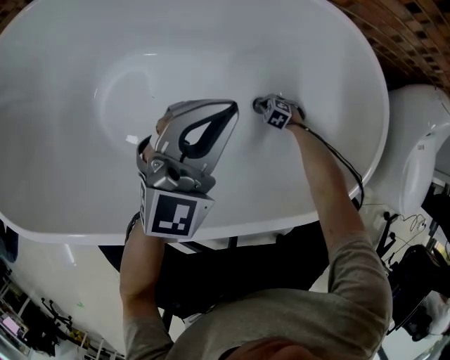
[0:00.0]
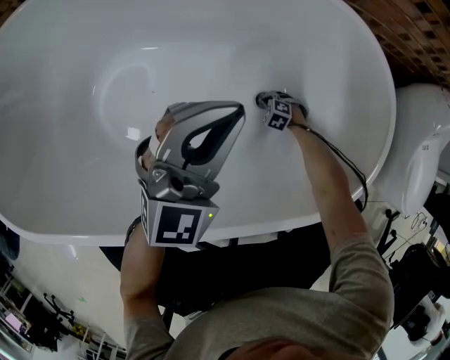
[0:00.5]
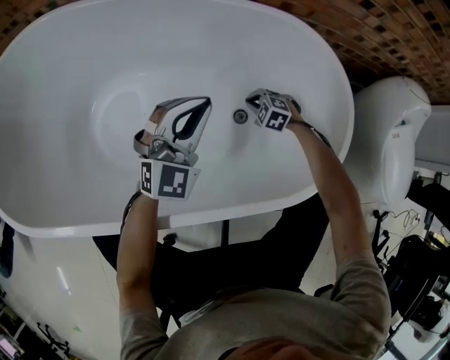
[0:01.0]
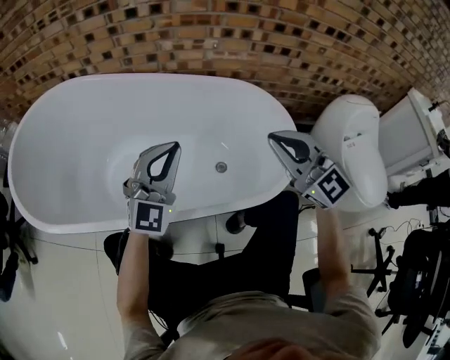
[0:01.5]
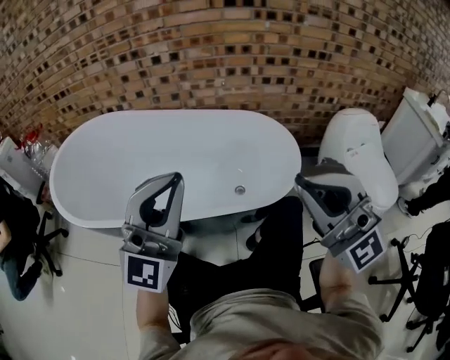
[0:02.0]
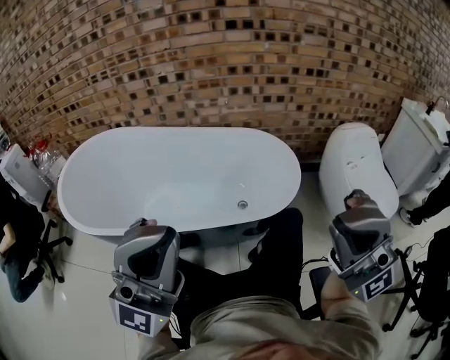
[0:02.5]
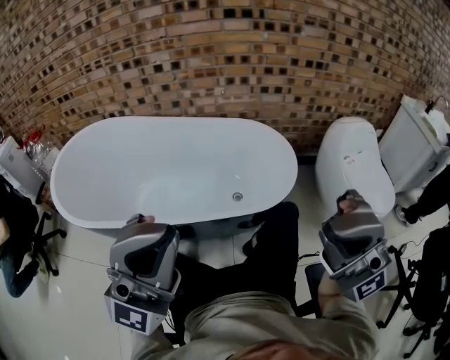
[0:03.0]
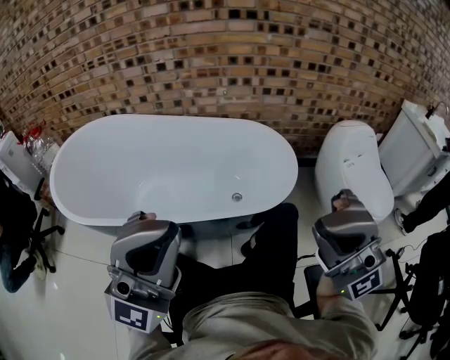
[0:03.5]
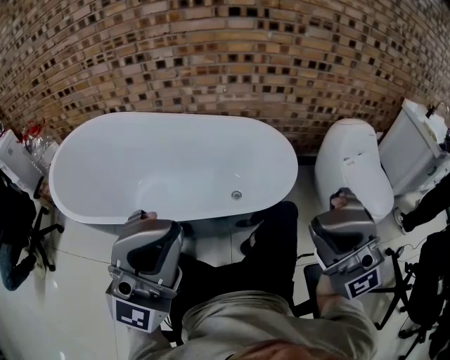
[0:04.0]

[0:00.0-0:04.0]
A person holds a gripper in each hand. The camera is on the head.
0:00.0 to 0:02.0: The left gripper shifts roughly 30 cm upward, and points its fingers roughly 30 degrees further upward, while the right gripper is displaced upward by approximately 90 cm, and angles its fingers upward, by roughly 100 degrees.
0:02.0 to 0:04.0: The left gripper goes some 10 cm backward and upward, while the right gripper travels backward by some 10 cm.

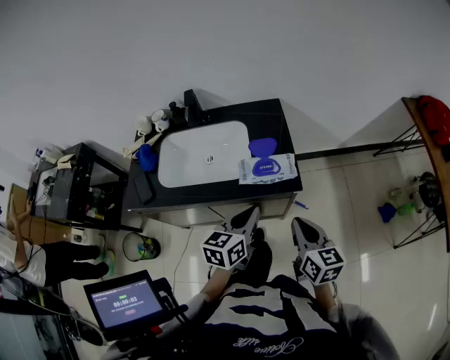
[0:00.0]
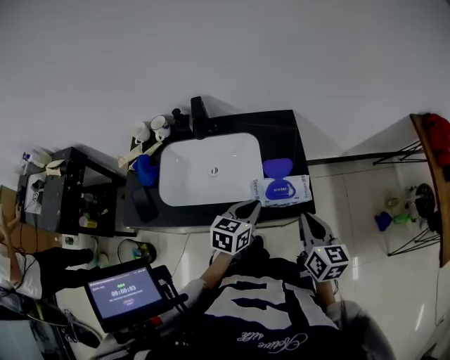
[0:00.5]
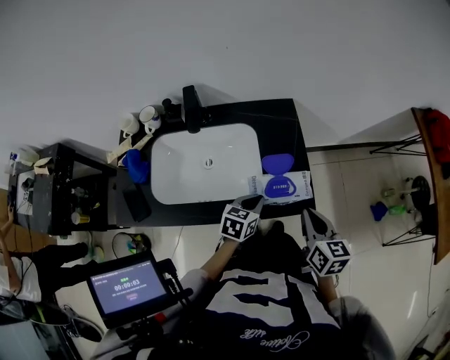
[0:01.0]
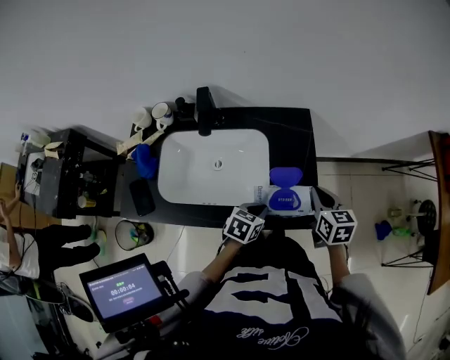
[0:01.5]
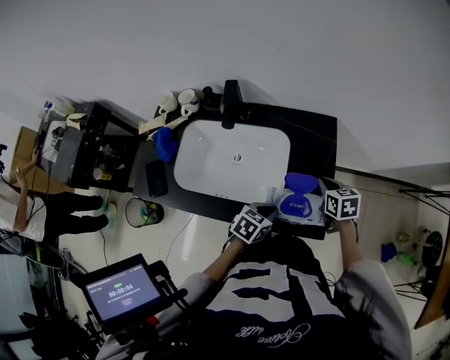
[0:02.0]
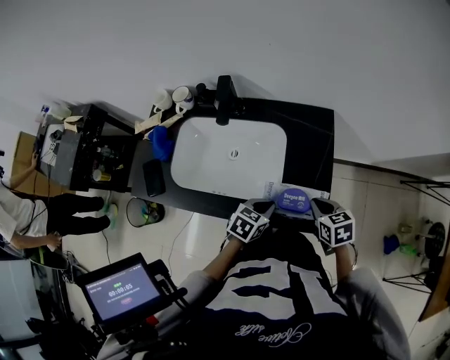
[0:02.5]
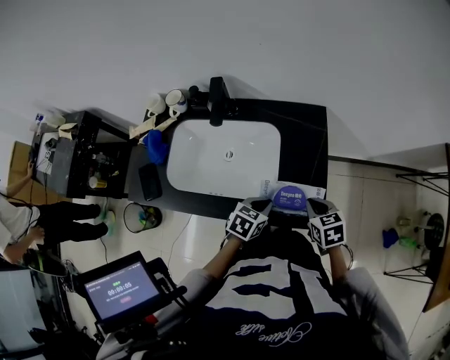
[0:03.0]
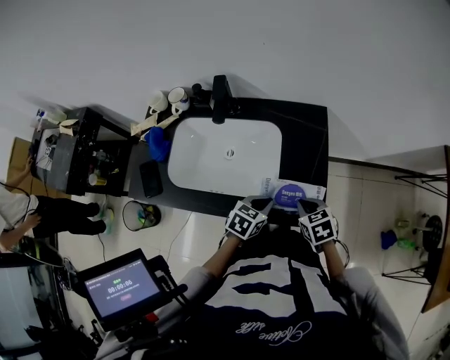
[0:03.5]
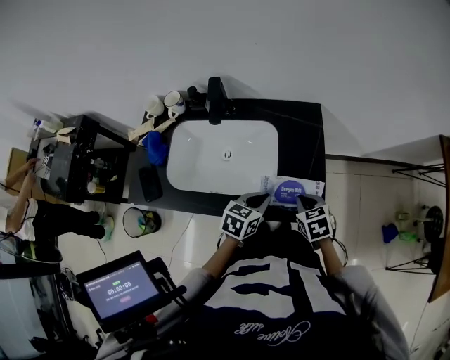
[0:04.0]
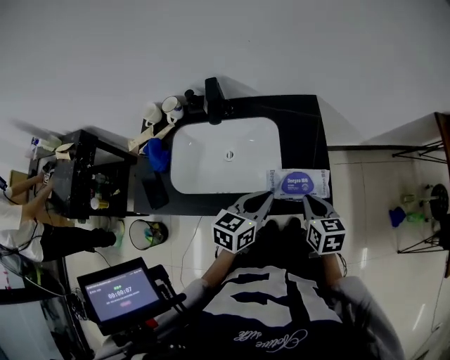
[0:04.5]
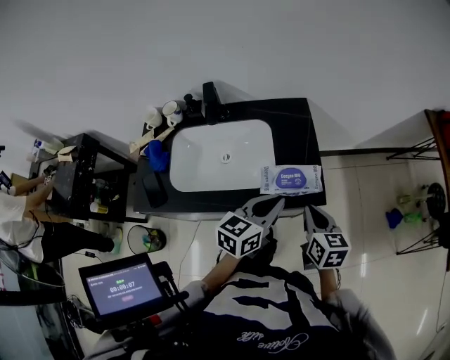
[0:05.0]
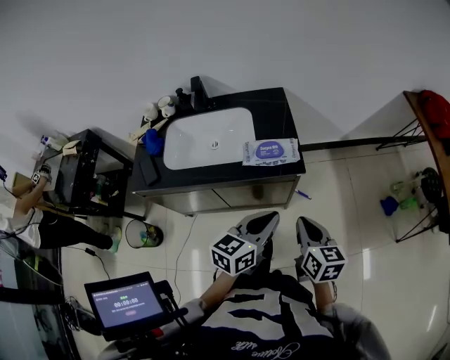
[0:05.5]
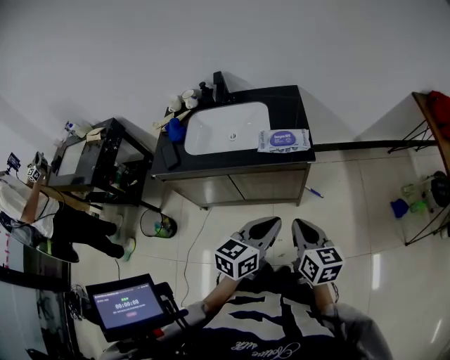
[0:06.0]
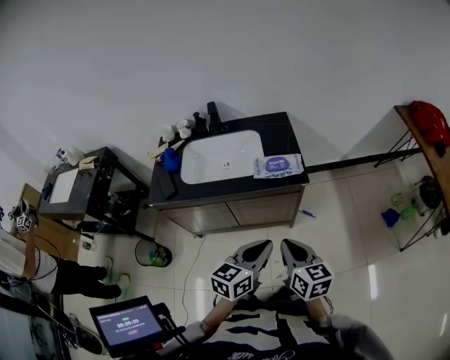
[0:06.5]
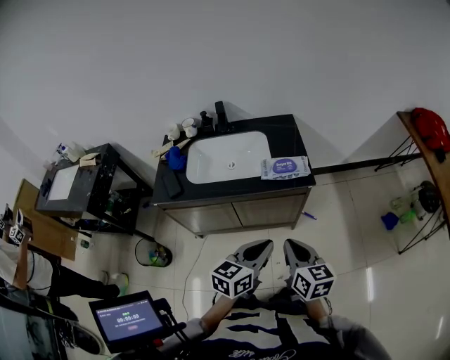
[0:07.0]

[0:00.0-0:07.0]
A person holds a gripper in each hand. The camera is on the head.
0:00.0 to 0:02.0: The left gripper heads downward and forward, covering roughly 20 cm, and turns by about 30 degrees. Meanwhile the right gripper shifts some 35 cm forward and downward, and turns by approximately 30 degrees.
0:02.0 to 0:03.5: The right gripper shifts roughly 10 cm backward.
0:03.5 to 0:05.0: The left gripper shifts roughly 15 cm upward, and changes its angle by about 30 degrees; the right gripper is displaced upward and backward by approximately 10 cm, and changes its angle by approximately 40 degrees.
0:05.0 to 0:07.0: Both grippers move backward, about 25 cm.

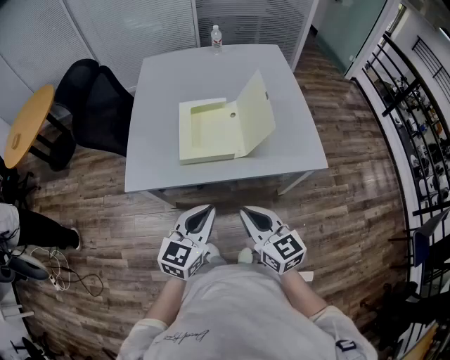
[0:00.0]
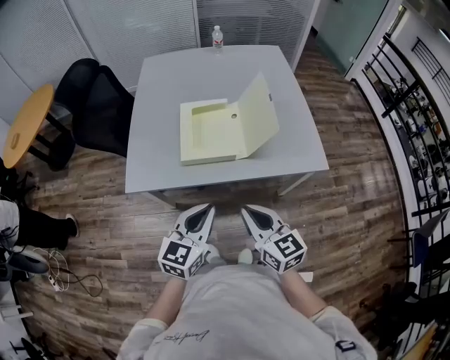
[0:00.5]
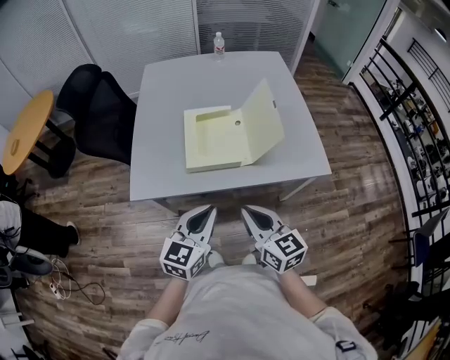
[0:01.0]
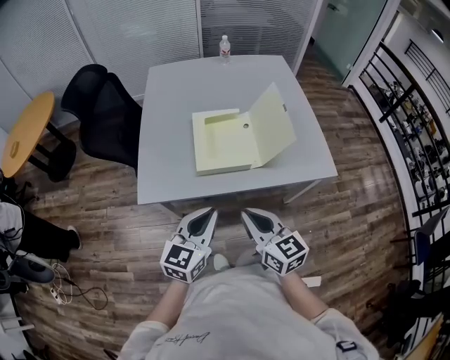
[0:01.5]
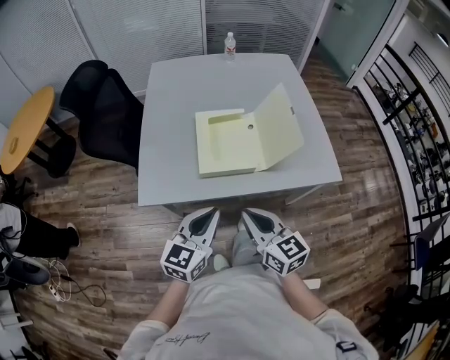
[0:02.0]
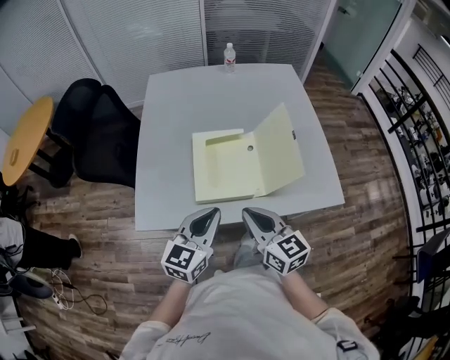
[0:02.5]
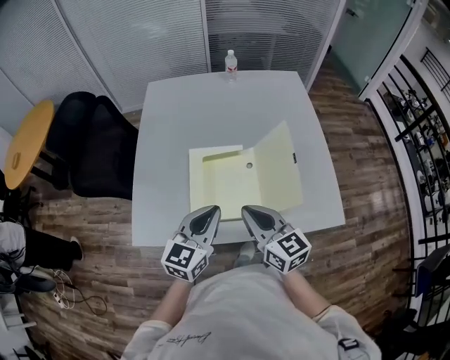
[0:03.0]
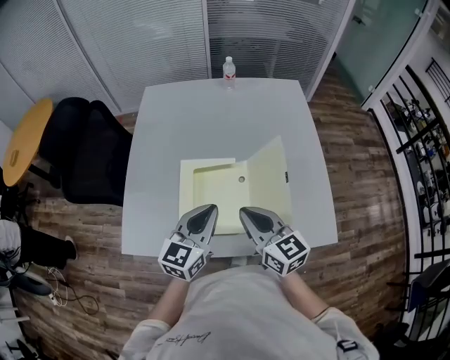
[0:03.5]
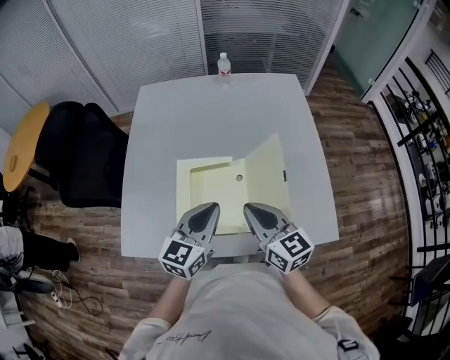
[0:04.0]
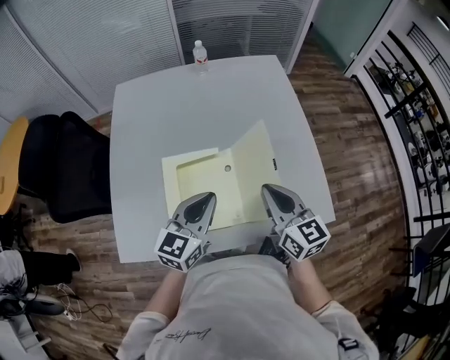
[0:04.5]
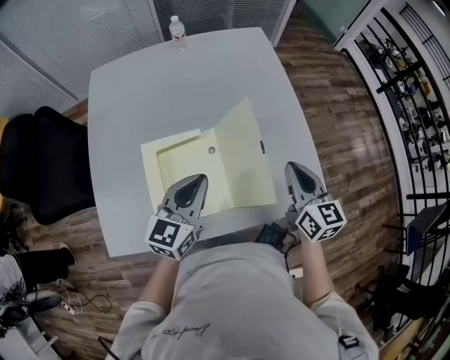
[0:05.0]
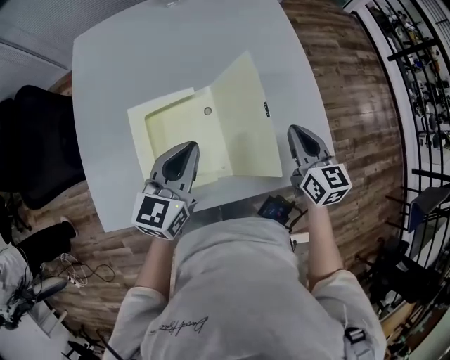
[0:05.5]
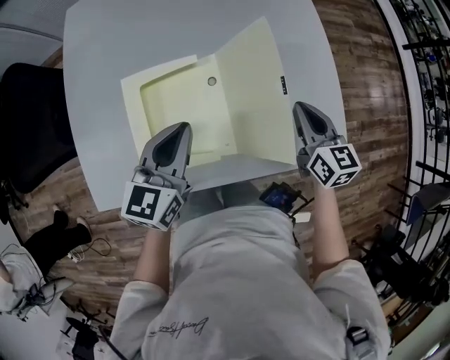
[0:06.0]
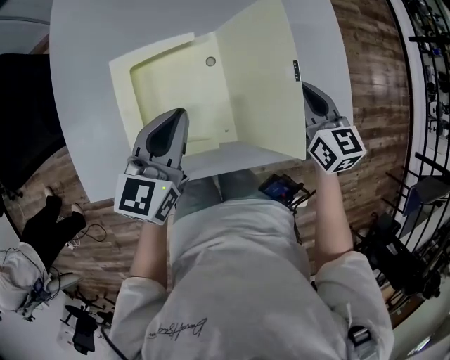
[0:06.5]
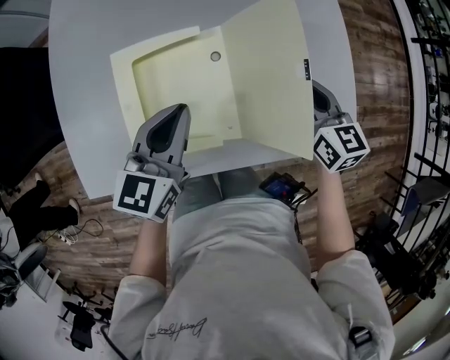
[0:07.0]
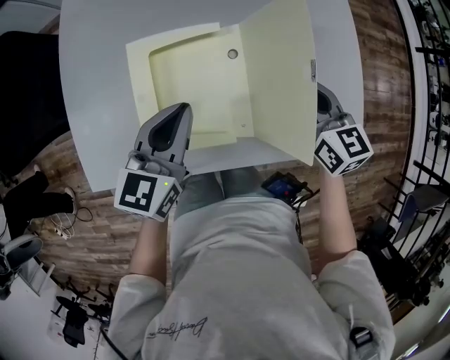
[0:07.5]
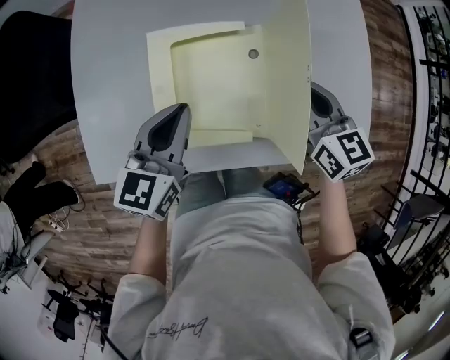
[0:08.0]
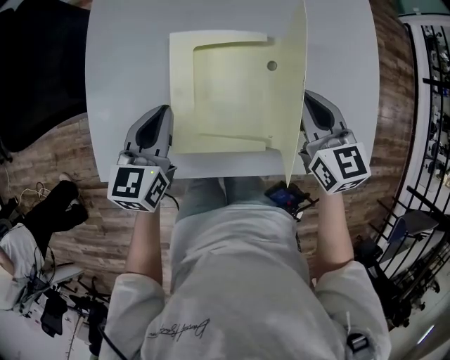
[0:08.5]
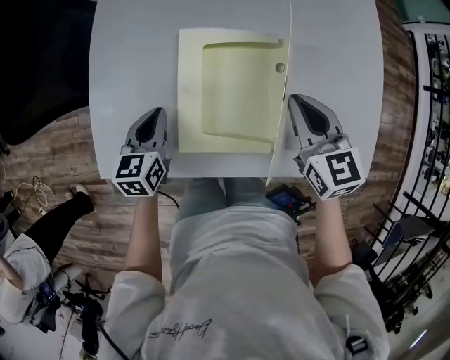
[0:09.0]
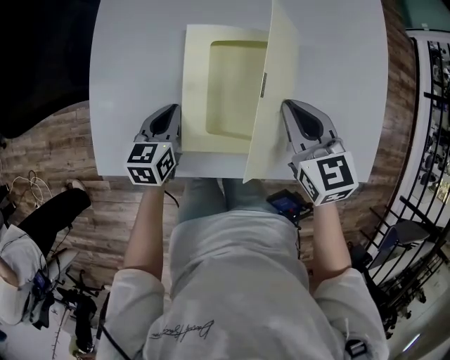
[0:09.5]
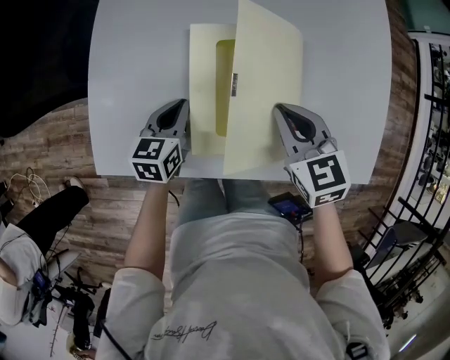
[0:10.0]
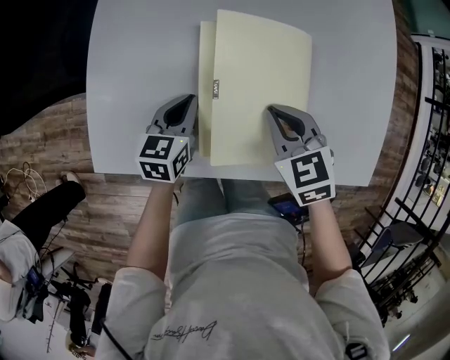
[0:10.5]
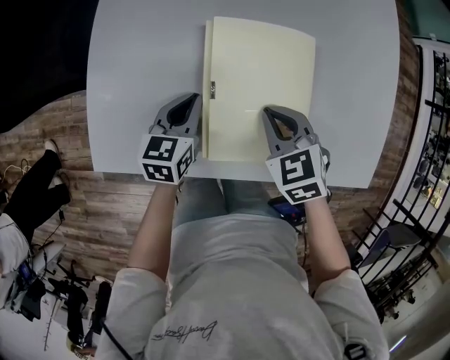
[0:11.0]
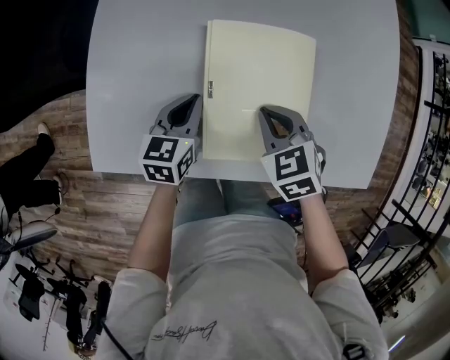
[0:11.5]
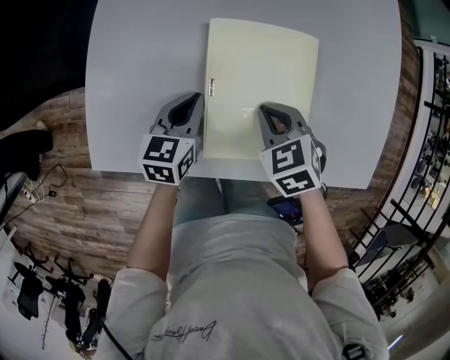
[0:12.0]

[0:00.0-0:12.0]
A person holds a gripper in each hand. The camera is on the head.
0:00.0 to 0:02.0: The right gripper goes approximately 10 cm to the left and forward, while the left gripper moves to the left, about 5 cm.
0:02.0 to 0:04.0: Both grippers move forward and to the right, roughly 25 cm.
0:04.0 to 0:06.0: The left gripper travels downward by approximately 5 cm. Meanwhile the right gripper shifts about 20 cm to the right, downward and forward, and swivels approximately 20 degrees.
0:06.0 to 0:08.0: The left gripper is displaced to the left by about 10 cm. The right gripper is displaced to the left by approximately 15 cm.
0:08.0 to 0:10.0: The right gripper heads to the left, covering approximately 10 cm, and rotates roughly 30 degrees. The left gripper moves downward and to the left, some 20 cm.
0:10.0 to 0:12.0: The right gripper shifts about 5 cm downward, and rotates approximately 20 degrees.

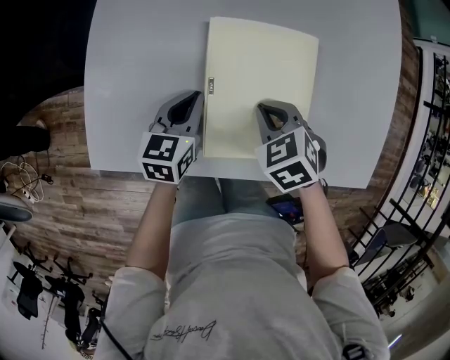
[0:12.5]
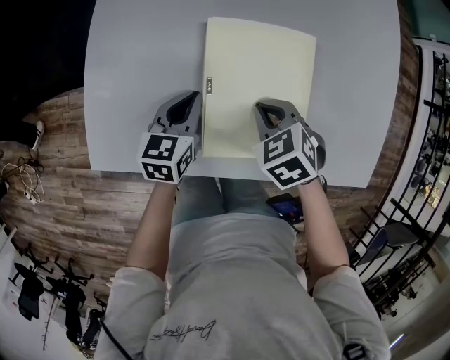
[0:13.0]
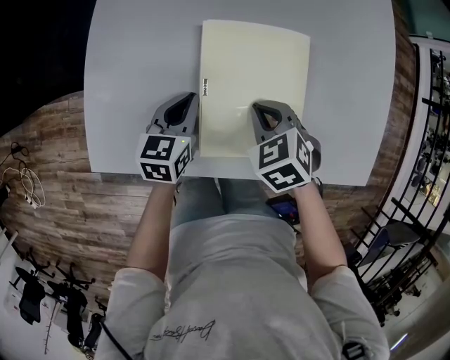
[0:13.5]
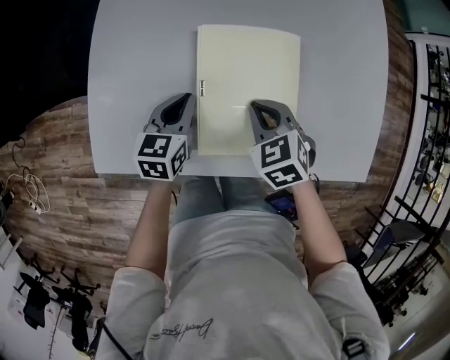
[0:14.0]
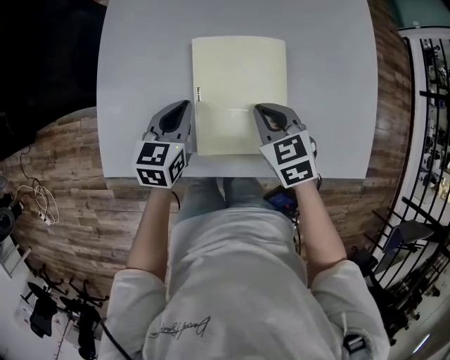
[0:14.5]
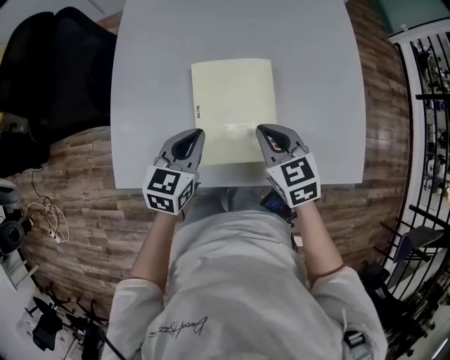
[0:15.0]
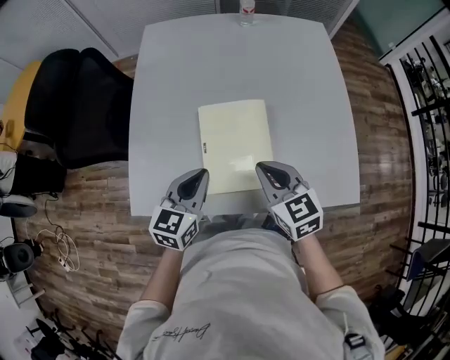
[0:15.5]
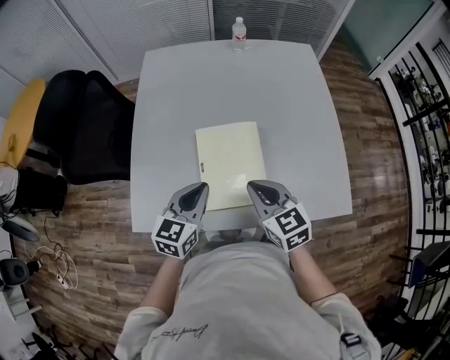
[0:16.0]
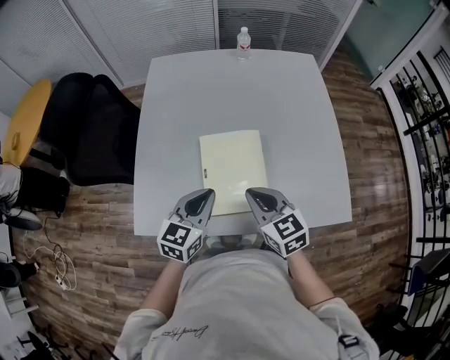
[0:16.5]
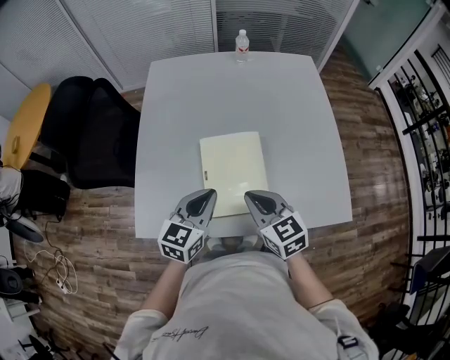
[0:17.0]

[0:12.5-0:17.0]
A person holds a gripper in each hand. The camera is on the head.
0:12.5 to 0:14.5: Both grippers move upward, approximately 5 cm. The right gripper swivels roughly 20 degrees.
0:14.5 to 0:17.0: The right gripper shifts approximately 15 cm upward and backward, and swivels about 20 degrees. The left gripper heads upward, covering roughly 15 cm.
